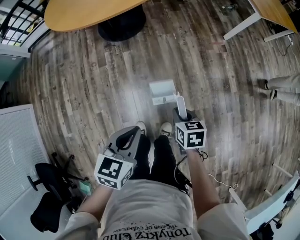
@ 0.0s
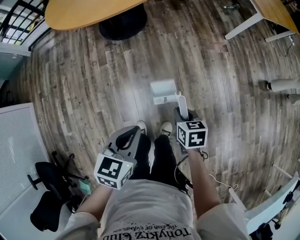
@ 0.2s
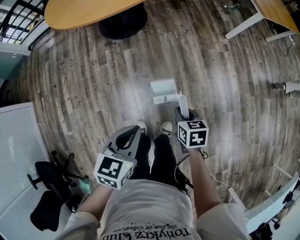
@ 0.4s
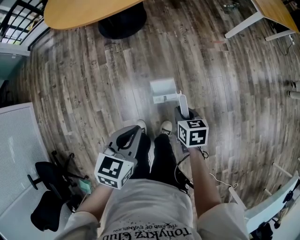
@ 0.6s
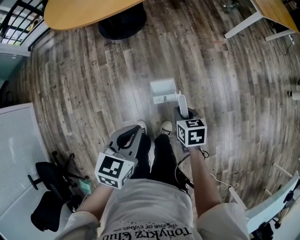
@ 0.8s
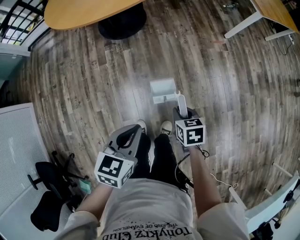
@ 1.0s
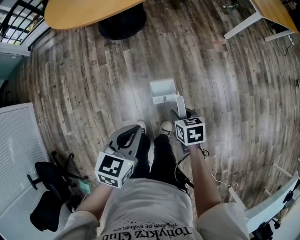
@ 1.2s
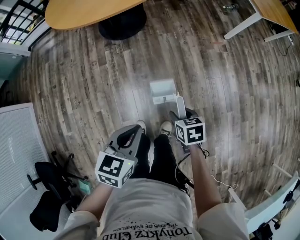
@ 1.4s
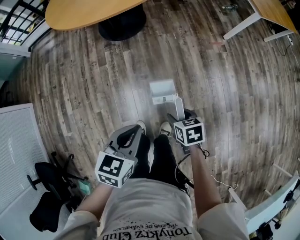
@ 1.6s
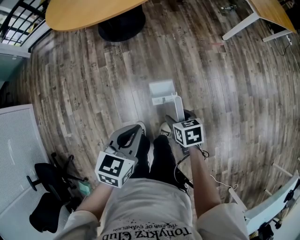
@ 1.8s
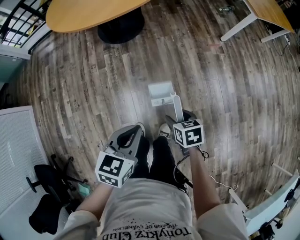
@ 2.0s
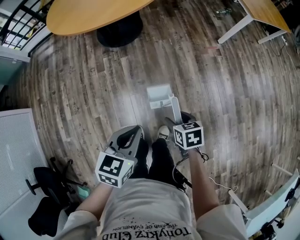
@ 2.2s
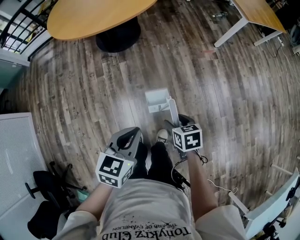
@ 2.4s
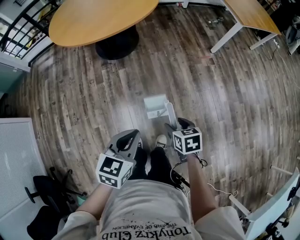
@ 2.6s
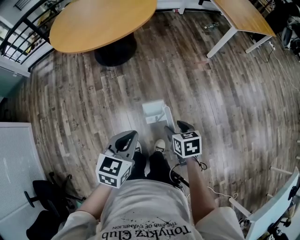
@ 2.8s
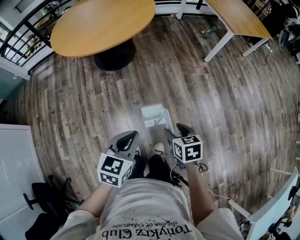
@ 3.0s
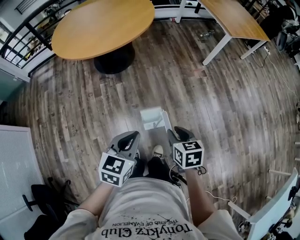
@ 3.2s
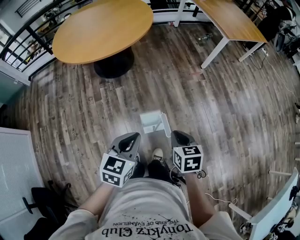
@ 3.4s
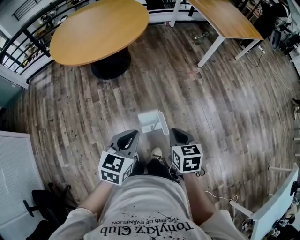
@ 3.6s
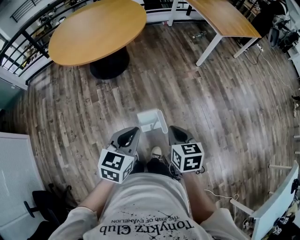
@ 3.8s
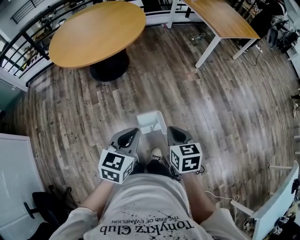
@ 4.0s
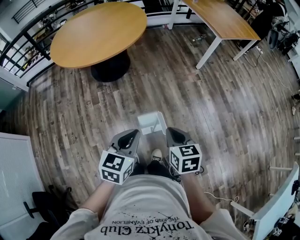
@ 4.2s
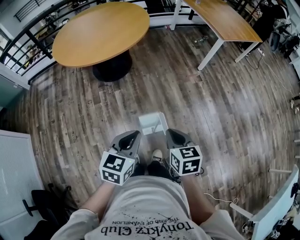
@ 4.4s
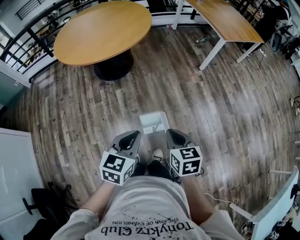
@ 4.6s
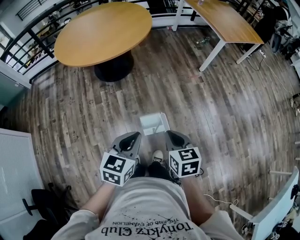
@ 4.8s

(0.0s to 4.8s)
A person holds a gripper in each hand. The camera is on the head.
0.0s - 1.6s: The right gripper opens its fingers.
1.6s - 3.2s: The left gripper is displaced upward by some 10 cm; the right gripper goes approximately 15 cm upward.
3.2s - 4.8s: The right gripper goes approximately 5 cm upward, and closes up.

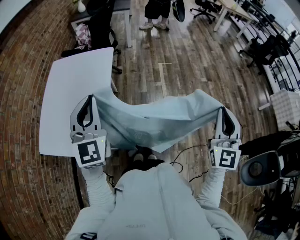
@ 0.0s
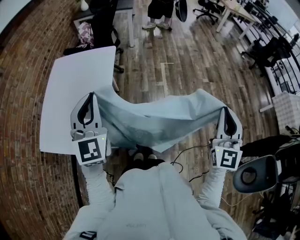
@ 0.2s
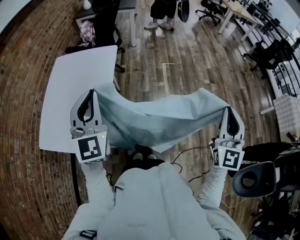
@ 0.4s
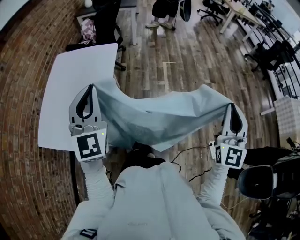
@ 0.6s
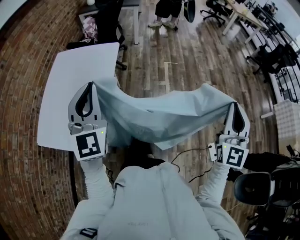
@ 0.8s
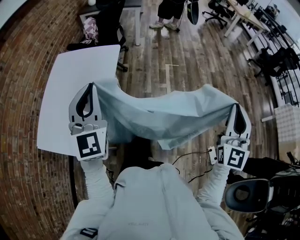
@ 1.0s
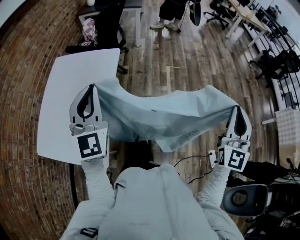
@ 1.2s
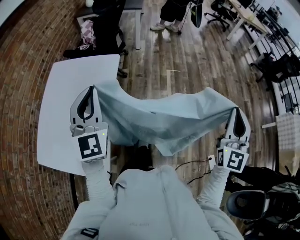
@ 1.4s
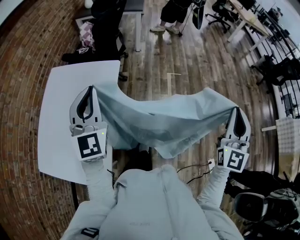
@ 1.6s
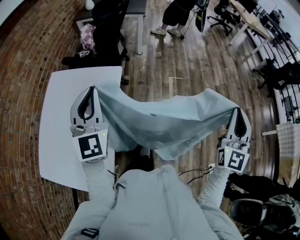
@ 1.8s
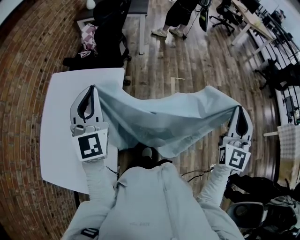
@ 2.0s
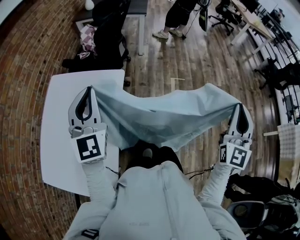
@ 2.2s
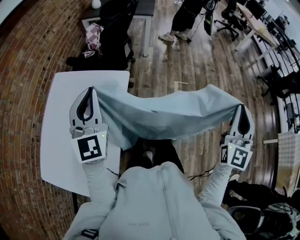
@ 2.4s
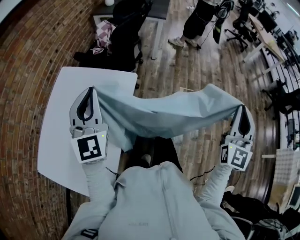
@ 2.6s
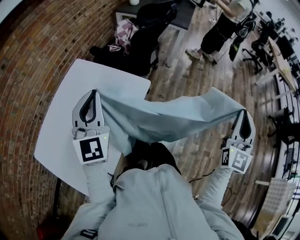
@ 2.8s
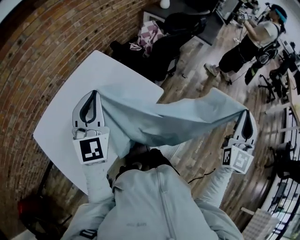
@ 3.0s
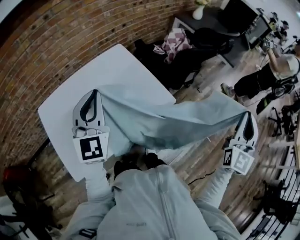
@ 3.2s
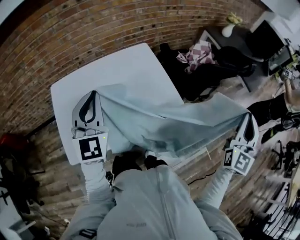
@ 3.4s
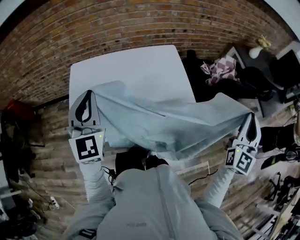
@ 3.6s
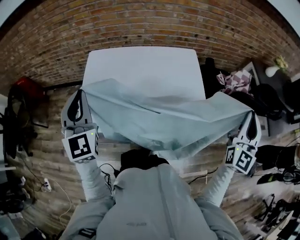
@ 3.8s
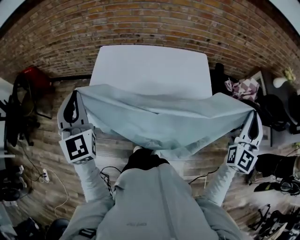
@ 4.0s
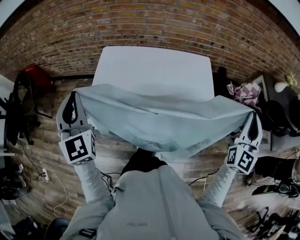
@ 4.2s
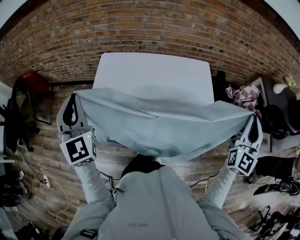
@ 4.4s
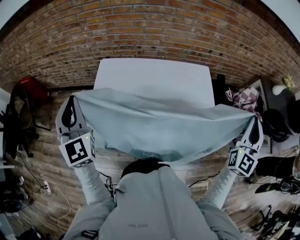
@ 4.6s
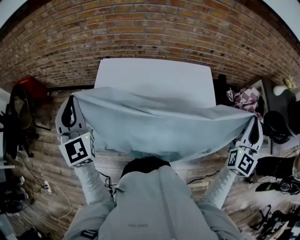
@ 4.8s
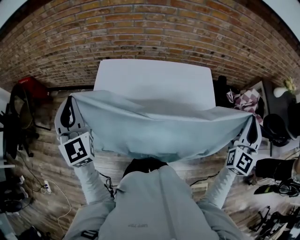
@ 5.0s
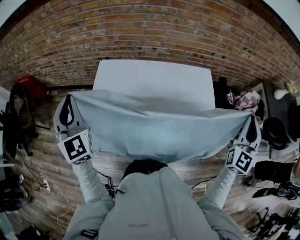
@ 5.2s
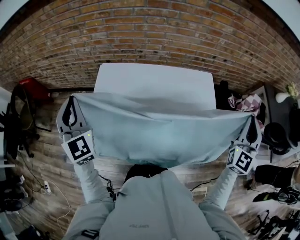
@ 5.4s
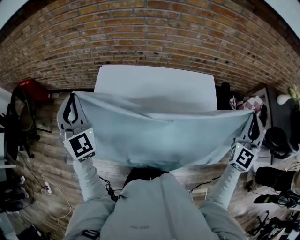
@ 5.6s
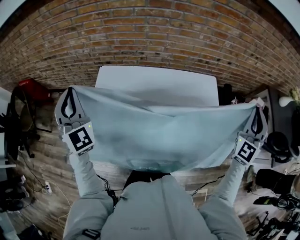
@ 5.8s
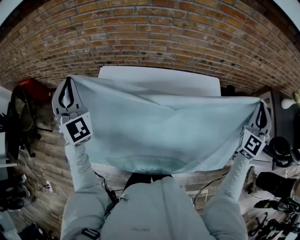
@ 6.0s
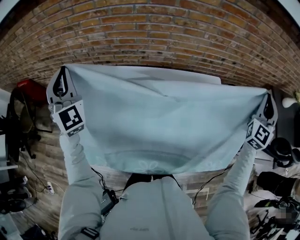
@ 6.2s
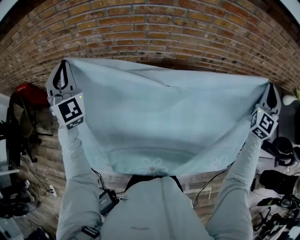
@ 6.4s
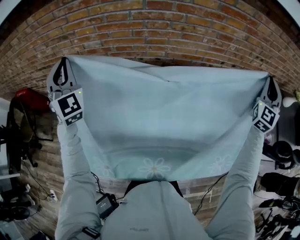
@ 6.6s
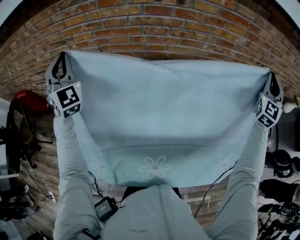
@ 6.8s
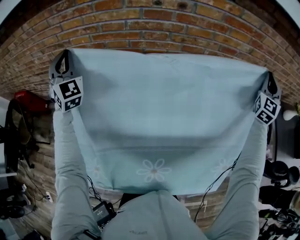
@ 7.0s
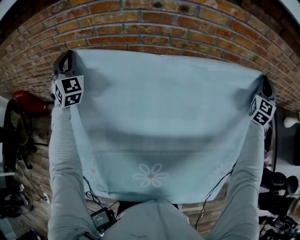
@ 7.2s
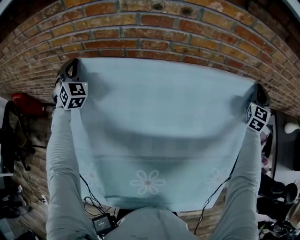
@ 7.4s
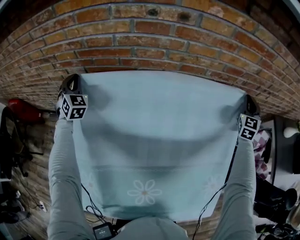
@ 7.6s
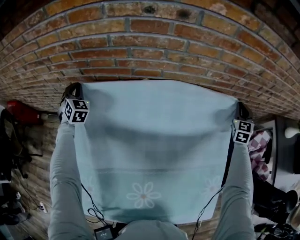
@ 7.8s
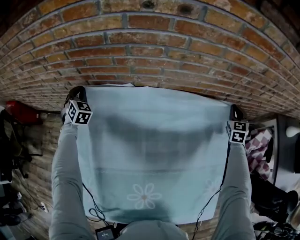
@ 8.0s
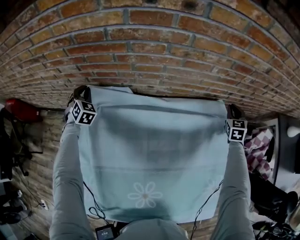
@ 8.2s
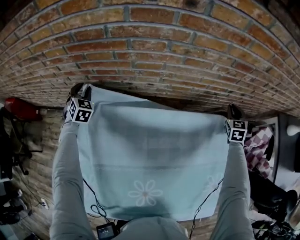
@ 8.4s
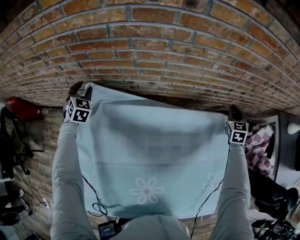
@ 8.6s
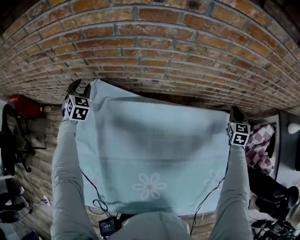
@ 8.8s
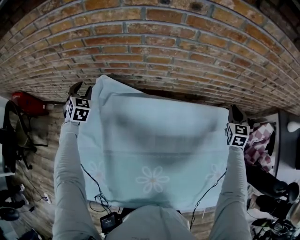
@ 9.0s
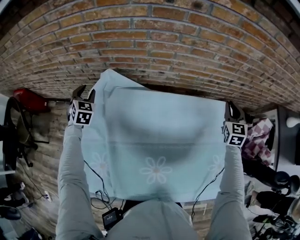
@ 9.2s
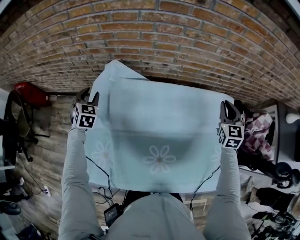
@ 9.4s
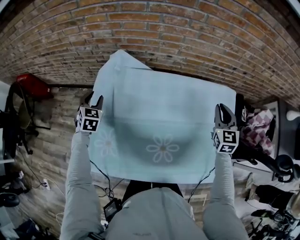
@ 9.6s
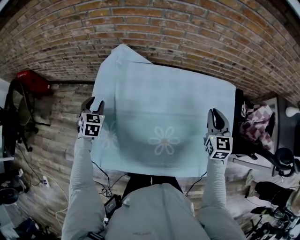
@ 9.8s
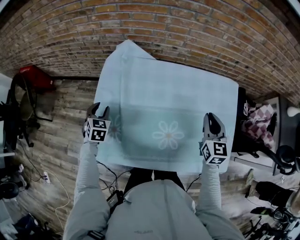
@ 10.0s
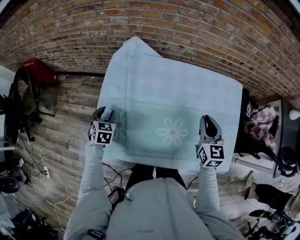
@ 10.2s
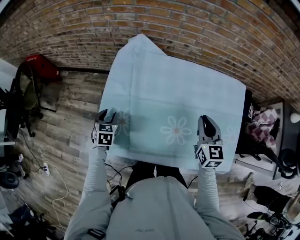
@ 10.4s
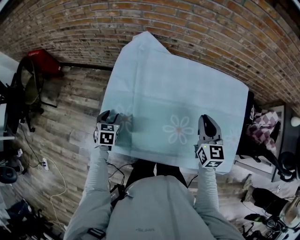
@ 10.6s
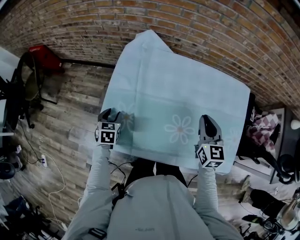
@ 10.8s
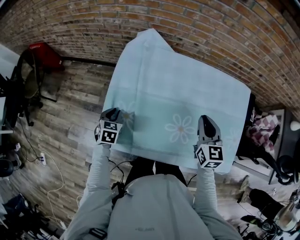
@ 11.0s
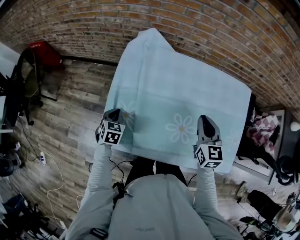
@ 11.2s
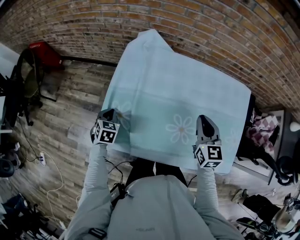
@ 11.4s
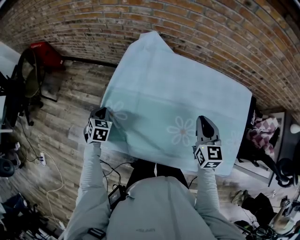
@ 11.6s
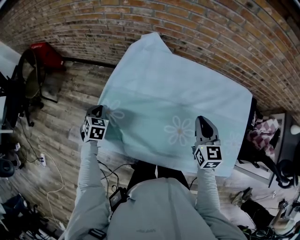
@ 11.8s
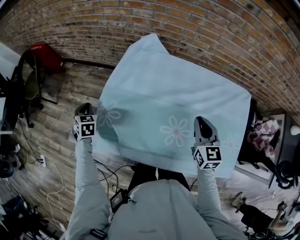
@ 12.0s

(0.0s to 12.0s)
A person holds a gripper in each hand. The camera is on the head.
0.0s - 1.6s: The two grippers go approximately 25 cm forward.
1.6s - 3.0s: The left gripper changes place by some 15 cm, and turns by approximately 30 degrees. Meanwhile the right gripper changes place by roughly 40 cm, and changes its angle by some 30 degrees.
3.0s - 4.4s: The left gripper moves about 35 cm, and turns by roughly 70 degrees; the right gripper shifts by some 40 cm, and rotates roughly 50 degrees.
4.4s - 6.0s: The two grippers go roughly 20 cm forward. The left gripper rotates approximately 20 degrees.
6.0s - 7.6s: Both grippers travel together forward and downward, roughly 35 cm. The left gripper turns by roughly 20 degrees.
7.6s - 9.0s: The left gripper travels downward and backward by some 10 cm, and opens up. Meanwhile the right gripper heads downward, to the left and backward, covering approximately 15 cm.
9.0s - 10.4s: The right gripper travels to the left and backward by some 40 cm, and swivels about 30 degrees, while the left gripper is displaced backward by roughly 35 cm, and rotates about 30 degrees.
10.4s - 12.0s: The left gripper heads to the left, covering roughly 15 cm, and closes its fingers. The right gripper goes about 5 cm to the left.

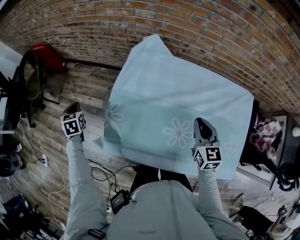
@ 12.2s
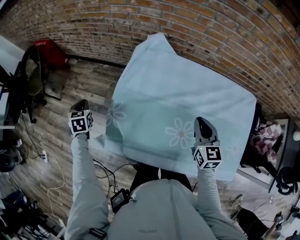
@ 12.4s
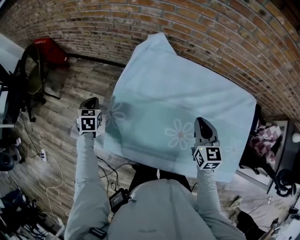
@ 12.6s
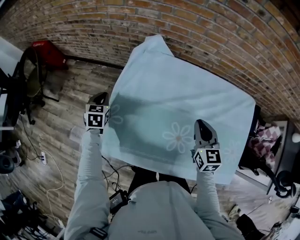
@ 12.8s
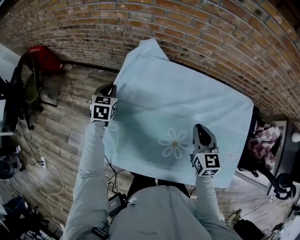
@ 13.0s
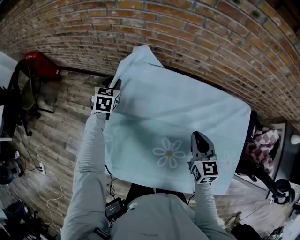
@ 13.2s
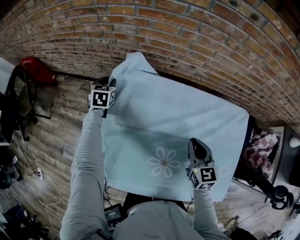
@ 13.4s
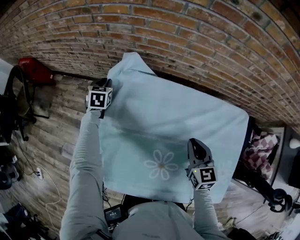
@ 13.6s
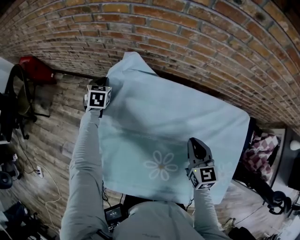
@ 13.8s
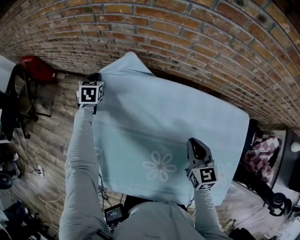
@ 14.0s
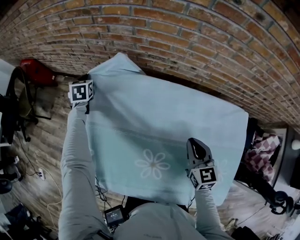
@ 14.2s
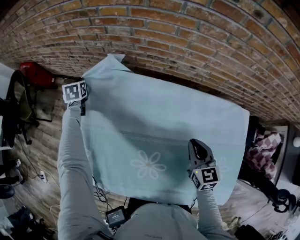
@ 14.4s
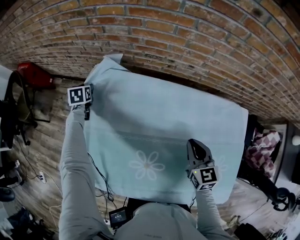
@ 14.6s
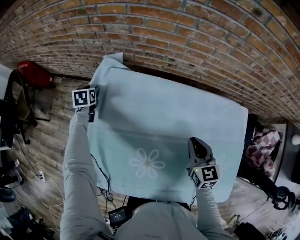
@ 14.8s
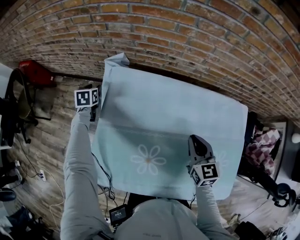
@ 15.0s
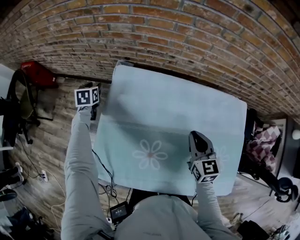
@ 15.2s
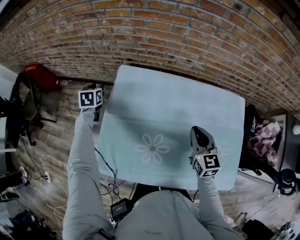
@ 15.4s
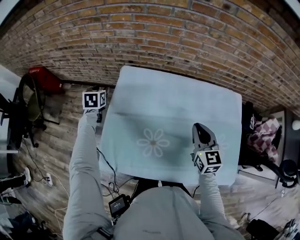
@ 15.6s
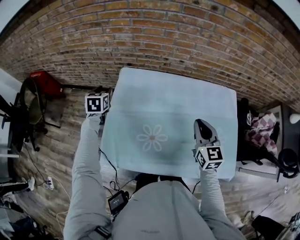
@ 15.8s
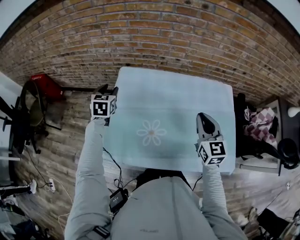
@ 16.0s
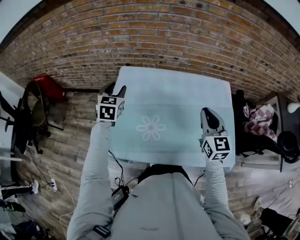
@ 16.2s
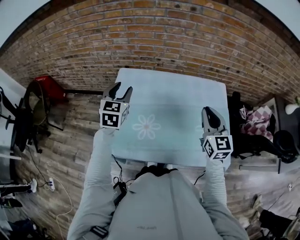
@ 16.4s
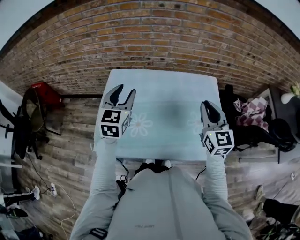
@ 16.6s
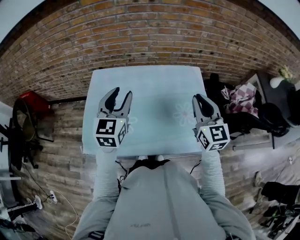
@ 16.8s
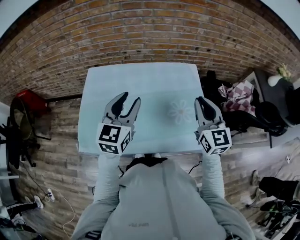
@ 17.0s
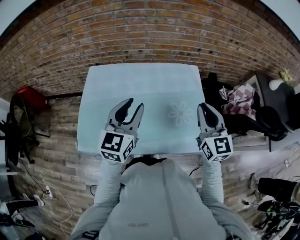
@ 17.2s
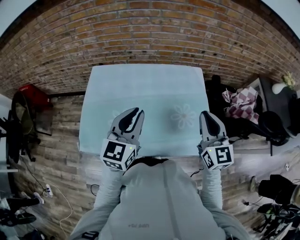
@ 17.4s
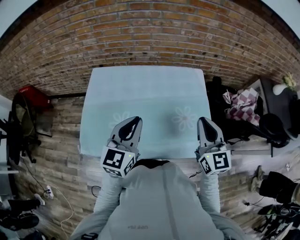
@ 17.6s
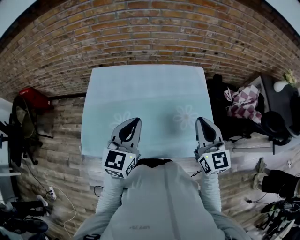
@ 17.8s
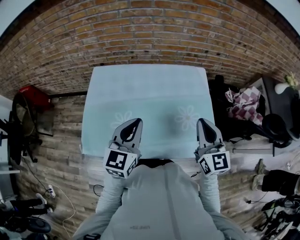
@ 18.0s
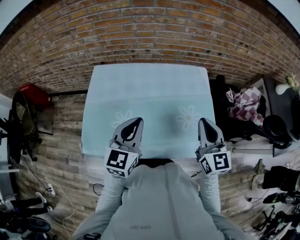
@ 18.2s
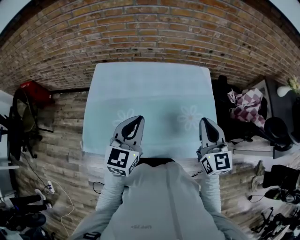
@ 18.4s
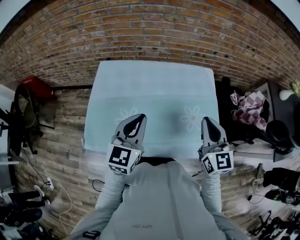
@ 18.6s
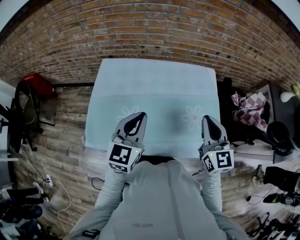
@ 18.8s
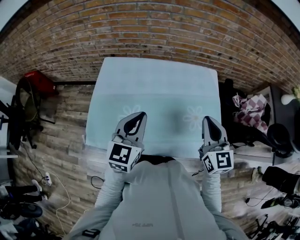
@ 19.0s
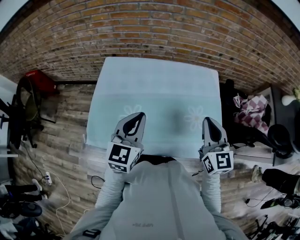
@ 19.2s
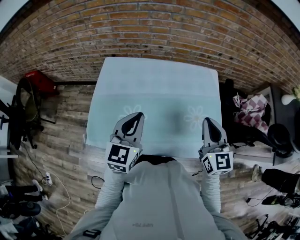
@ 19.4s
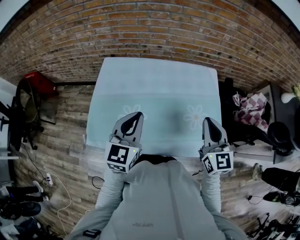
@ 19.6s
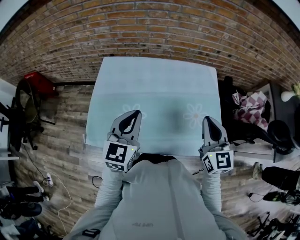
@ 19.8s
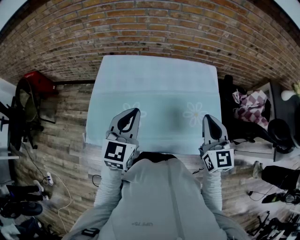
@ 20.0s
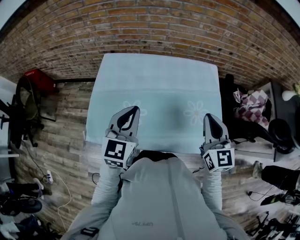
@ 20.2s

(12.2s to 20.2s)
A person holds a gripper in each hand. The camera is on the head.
12.2s - 13.8s: The left gripper heads to the right and forward, covering approximately 35 cm, swivels about 20 degrees, and opens and closes again; the right gripper moves to the right and forward, about 10 cm.
13.8s - 15.4s: The left gripper shifts about 10 cm to the left and backward, and opens up.
15.4s - 17.0s: The right gripper goes approximately 30 cm to the right, upward and backward, and turns by some 20 degrees. The left gripper is displaced to the right, backward and upward by roughly 60 cm, and tips its fingers upward by some 40 degrees.
17.0s - 18.6s: The left gripper moves about 5 cm, and closes its fingers.
18.6s - 20.2s: The grippers make only small movements.
